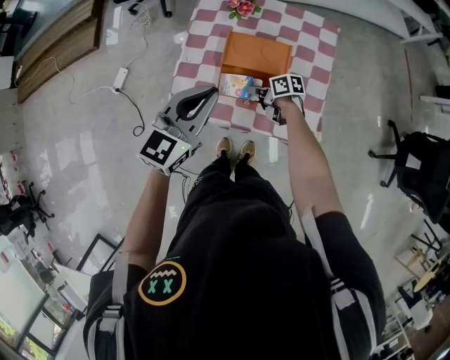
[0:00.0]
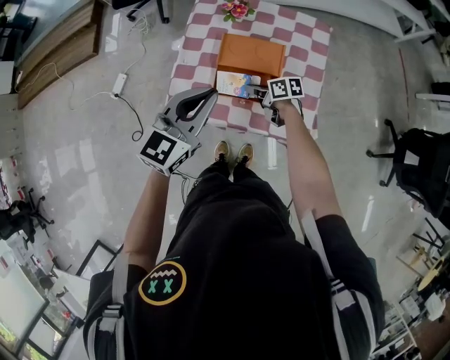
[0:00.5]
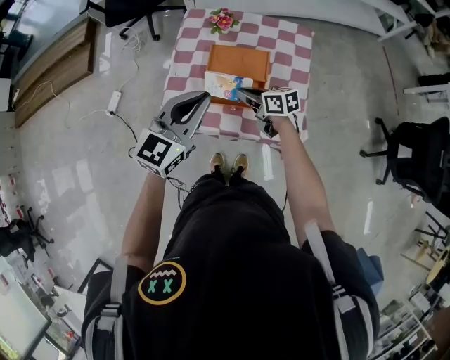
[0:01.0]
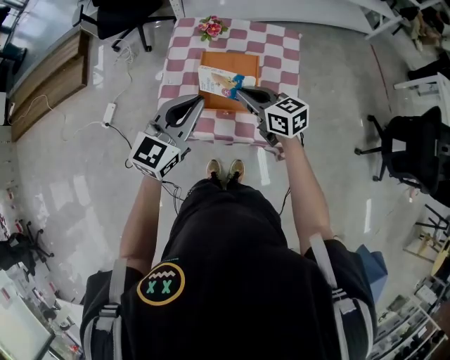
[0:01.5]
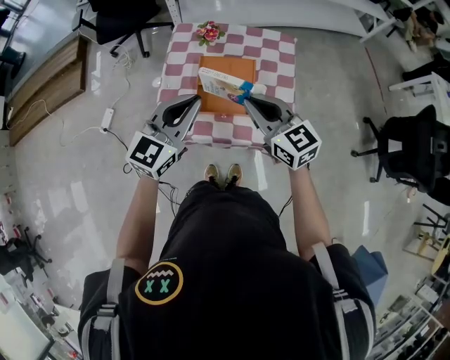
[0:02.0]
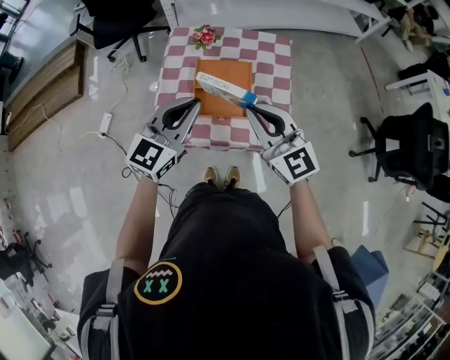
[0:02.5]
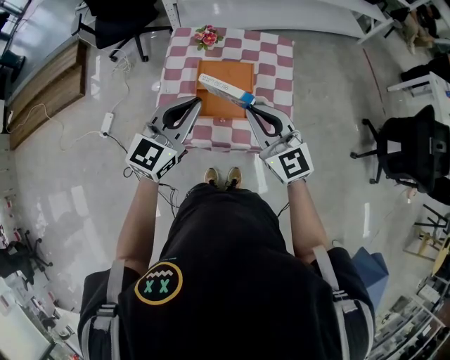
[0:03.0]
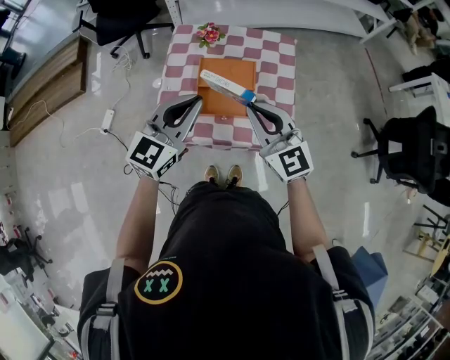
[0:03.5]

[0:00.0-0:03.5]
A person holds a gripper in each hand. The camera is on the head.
0:00.0 to 0:02.0: The right gripper heads upward, covering roughly 35 cm, and rotates around the line of its fingers by about 50 degrees, counterclockwise from behind; the left gripper goes roughly 5 cm upward.
0:02.0 to 0:03.5: There are only small adjustments of the grippers.

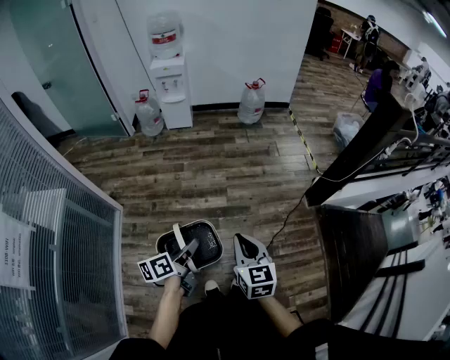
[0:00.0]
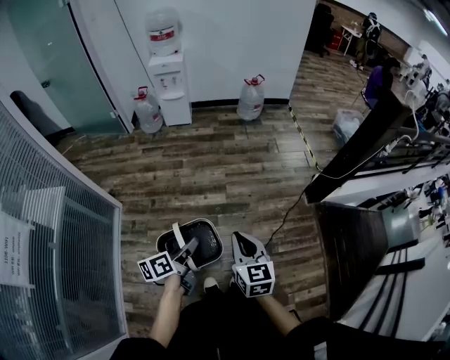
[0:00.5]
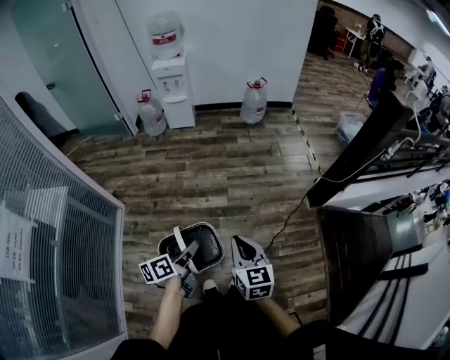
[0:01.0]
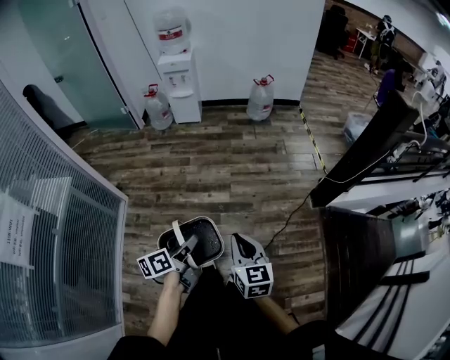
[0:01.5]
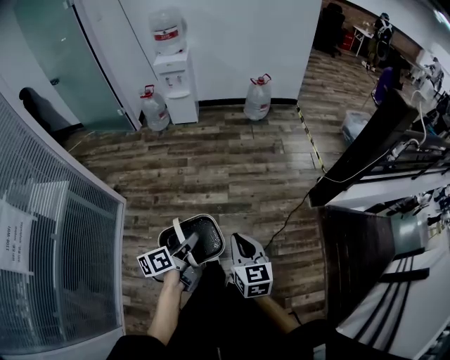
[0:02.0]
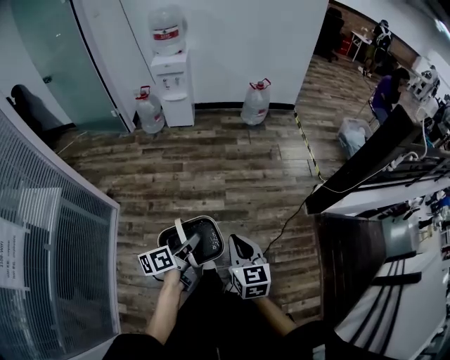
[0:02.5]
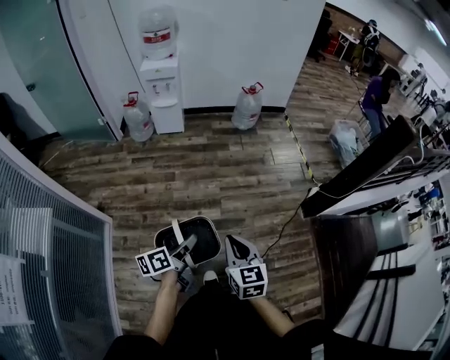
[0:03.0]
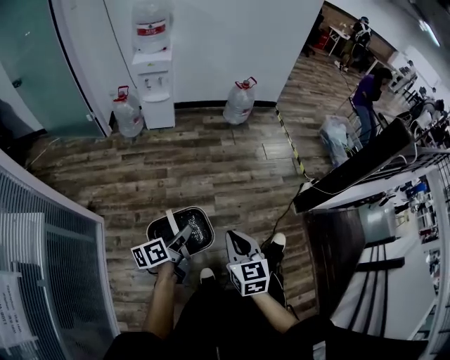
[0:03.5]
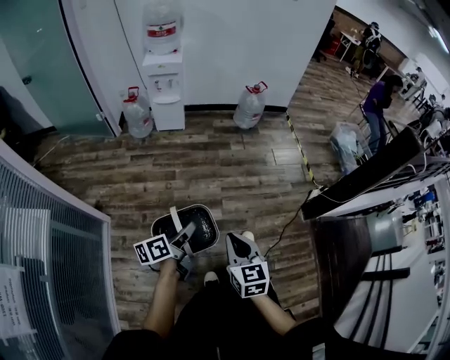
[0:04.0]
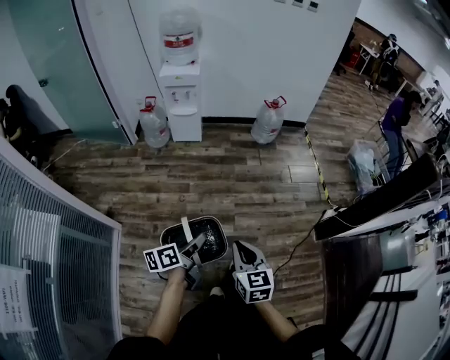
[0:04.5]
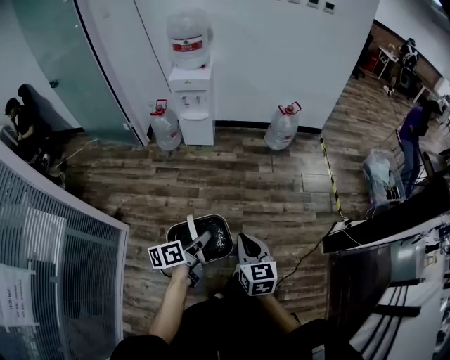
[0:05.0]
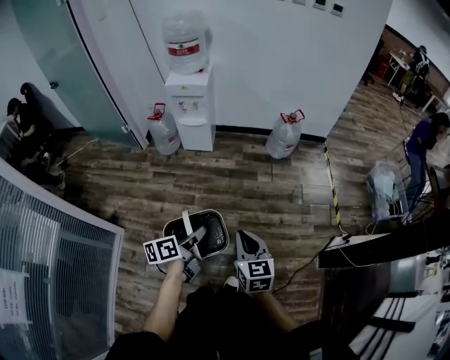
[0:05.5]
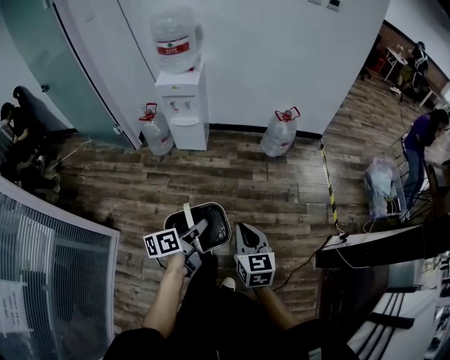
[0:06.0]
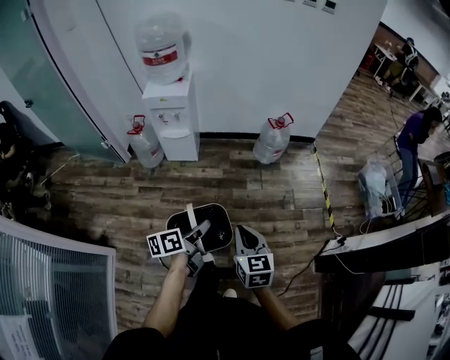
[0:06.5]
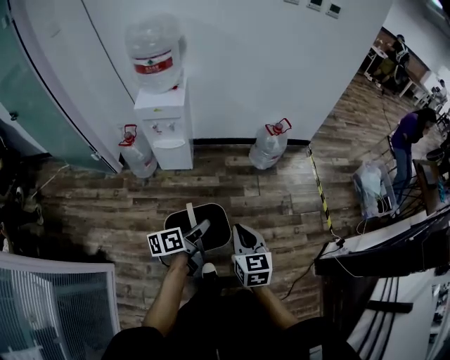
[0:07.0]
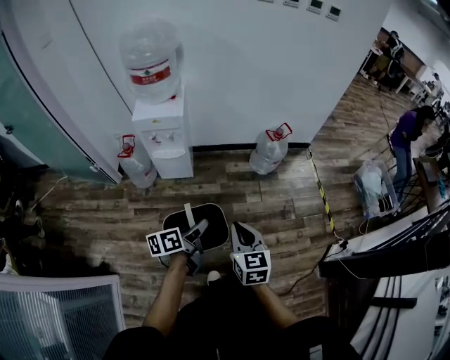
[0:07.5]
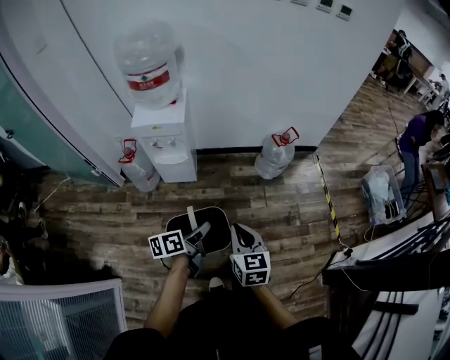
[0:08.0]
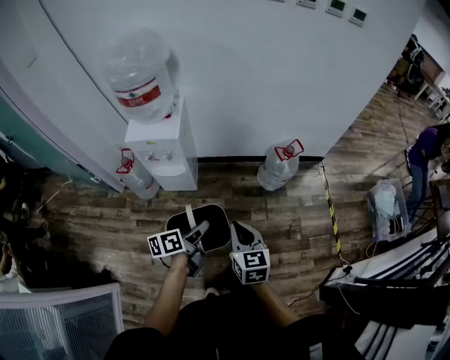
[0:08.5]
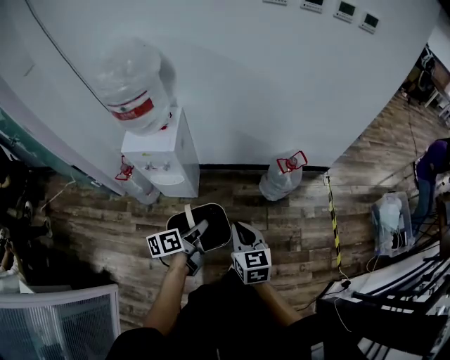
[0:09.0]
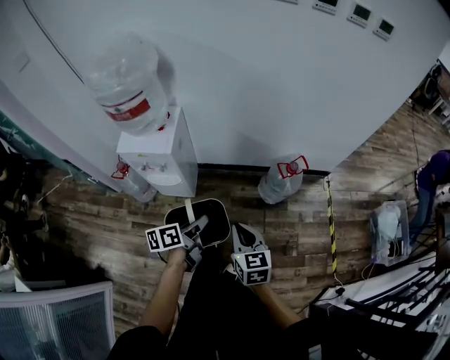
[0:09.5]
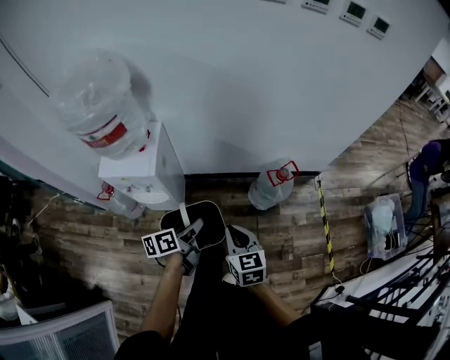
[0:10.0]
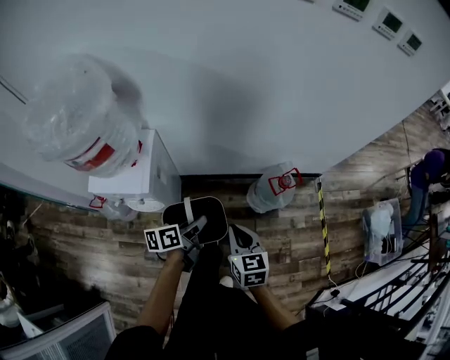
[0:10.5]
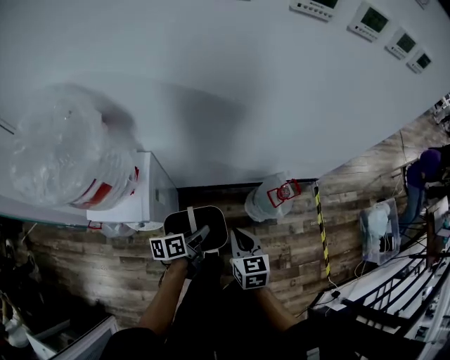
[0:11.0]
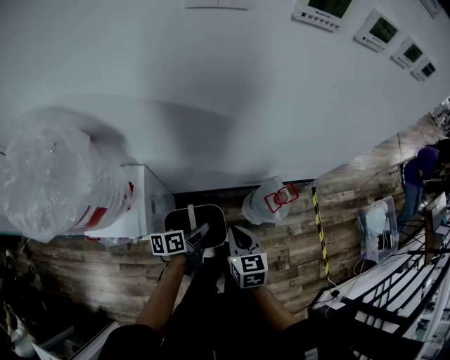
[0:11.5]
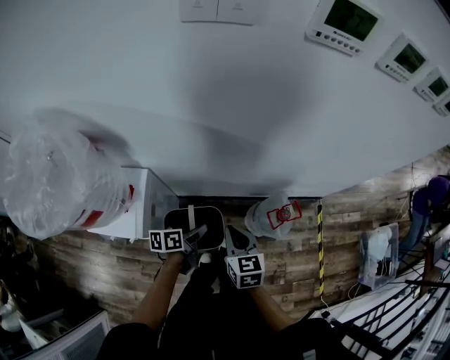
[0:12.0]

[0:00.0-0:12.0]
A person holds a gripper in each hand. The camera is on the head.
0:00.0 to 0:02.0: The grippers both shift to the right by approximately 5 cm.
0:02.0 to 0:04.0: The left gripper moves forward and to the left, some 25 cm; the right gripper heads to the left and forward, covering about 20 cm.
0:04.0 to 0:06.0: Both grippers move forward, about 30 cm.
0:06.0 to 0:08.0: The two grippers go roughly 30 cm forward and to the left.
0:08.0 to 0:10.0: The two grippers go roughly 30 cm forward.
0:10.0 to 0:12.0: Both grippers move forward, about 25 cm.

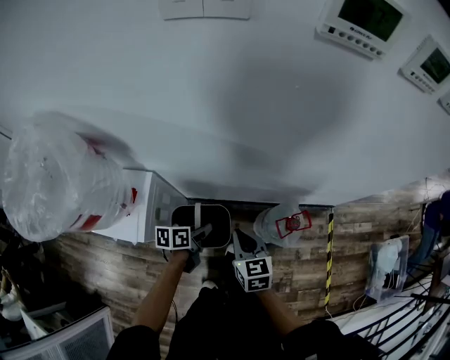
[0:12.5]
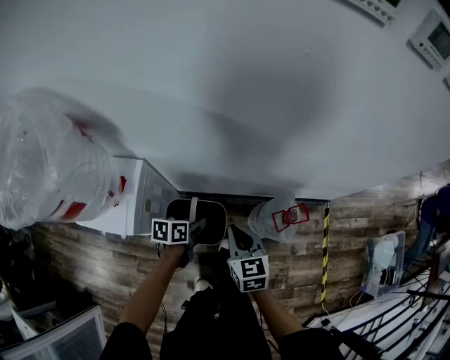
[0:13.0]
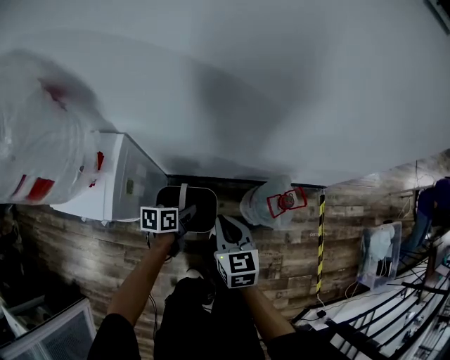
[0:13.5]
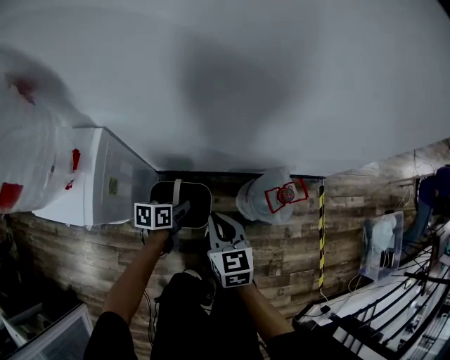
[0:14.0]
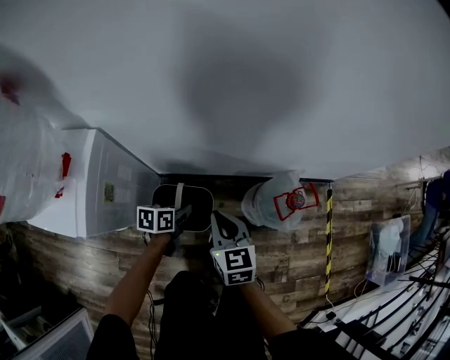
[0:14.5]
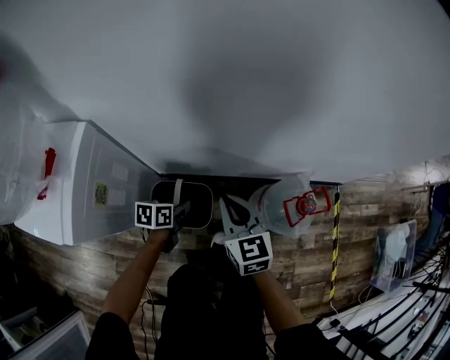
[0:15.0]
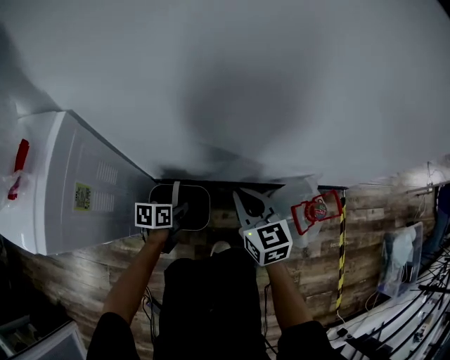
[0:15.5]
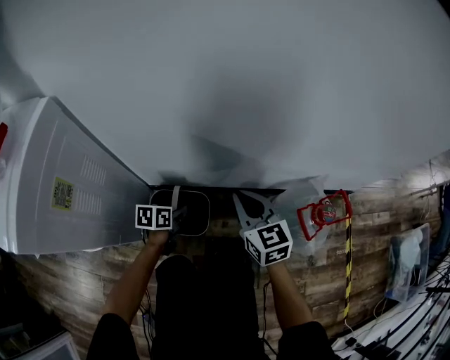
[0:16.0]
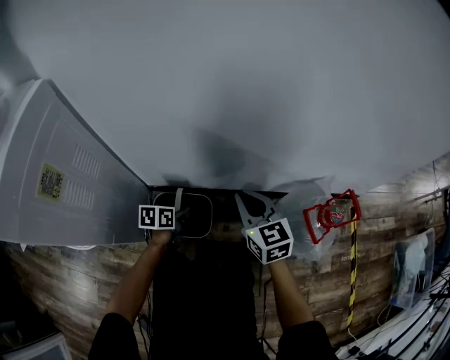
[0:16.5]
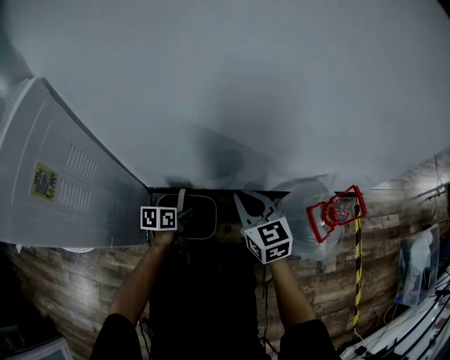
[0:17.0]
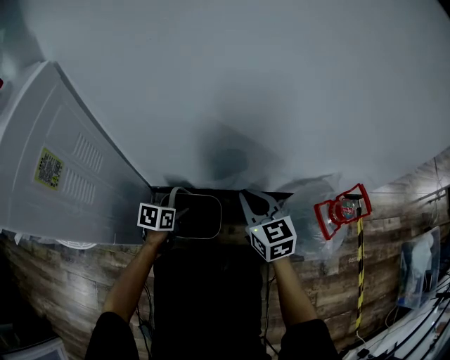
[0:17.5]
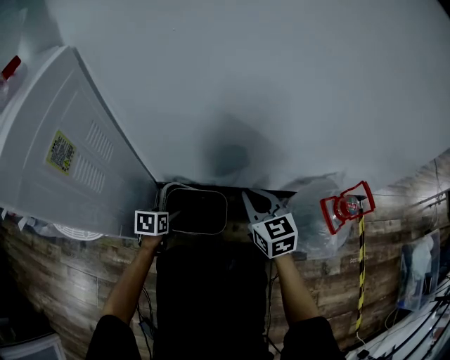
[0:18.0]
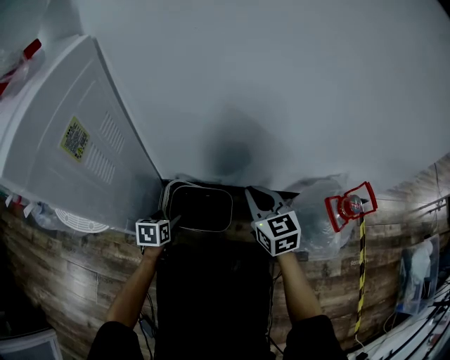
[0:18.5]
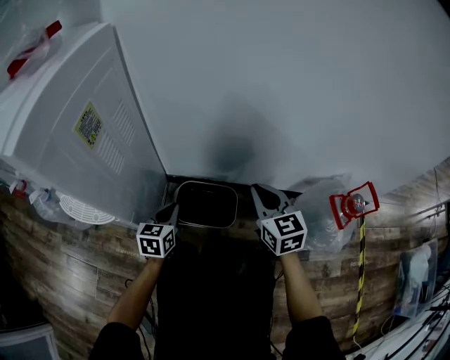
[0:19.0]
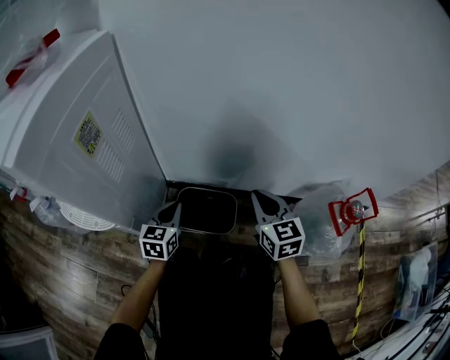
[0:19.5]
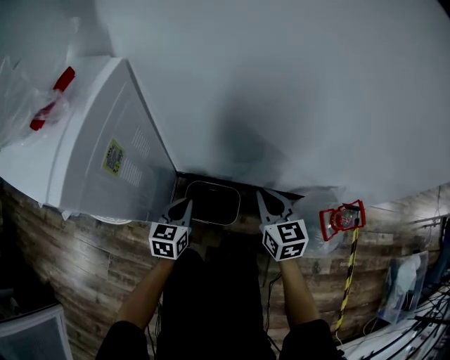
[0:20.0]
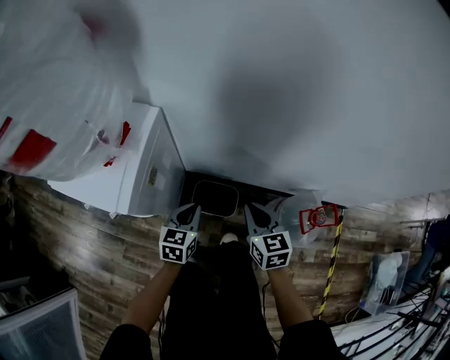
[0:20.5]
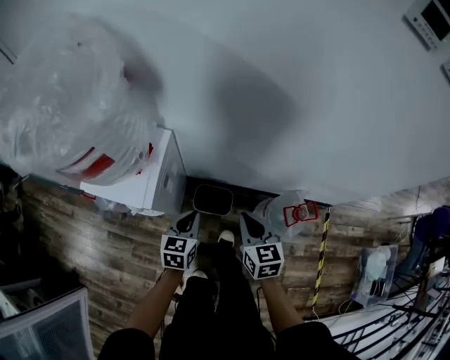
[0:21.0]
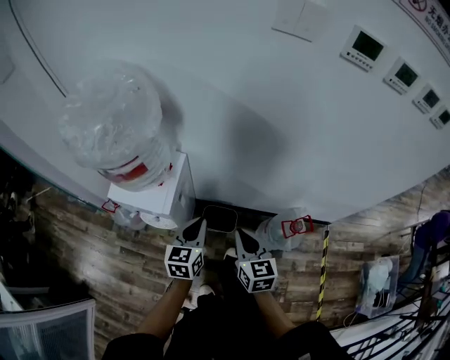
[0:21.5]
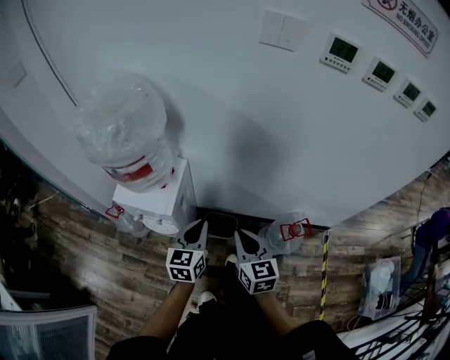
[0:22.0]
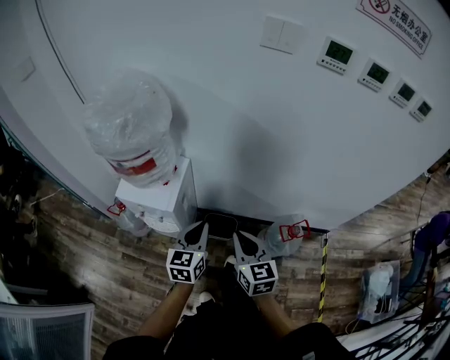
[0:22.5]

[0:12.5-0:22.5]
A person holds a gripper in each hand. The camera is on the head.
0:12.5 to 0:14.5: Both grippers travel together downward, some 20 cm.
0:14.5 to 0:16.5: The left gripper travels downward by roughly 25 cm. Meanwhile the right gripper travels downward and forward by some 25 cm.
0:16.5 to 0:18.5: The right gripper ends up some 5 cm from where it was. Meanwhile the left gripper shifts about 15 cm to the left and backward, rotates roughly 30 degrees, and opens.
0:18.5 to 0:20.5: The left gripper shifts some 35 cm upward, and closes. Meanwhile the right gripper heads upward, covering about 20 cm.
0:20.5 to 0:22.5: The right gripper heads upward and backward, covering some 35 cm. Meanwhile the left gripper is displaced upward by roughly 35 cm.

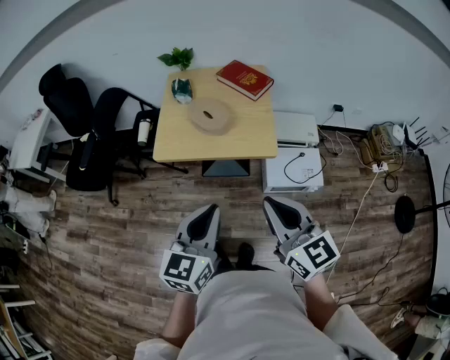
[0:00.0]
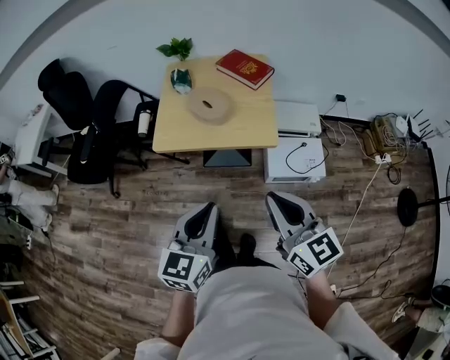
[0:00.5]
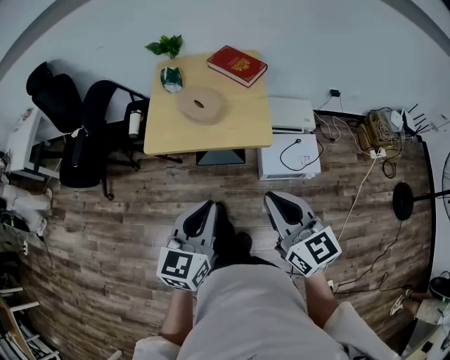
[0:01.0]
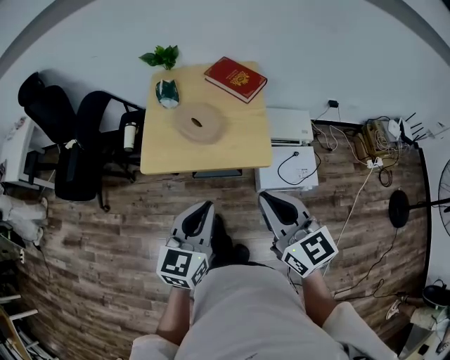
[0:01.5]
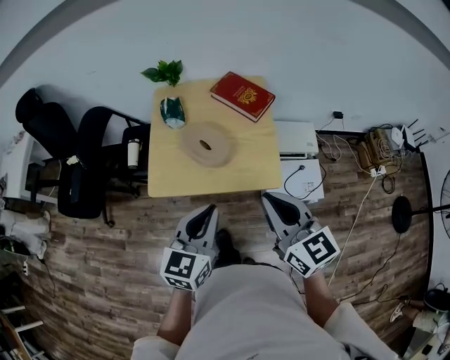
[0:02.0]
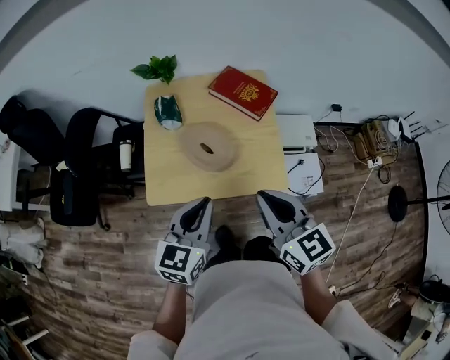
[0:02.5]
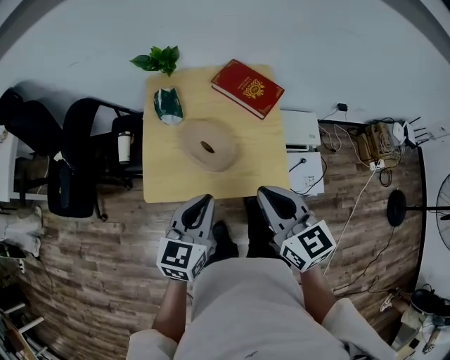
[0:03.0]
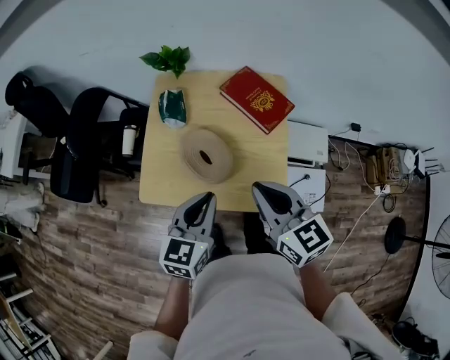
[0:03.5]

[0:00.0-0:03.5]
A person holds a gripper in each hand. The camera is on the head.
0:00.0 to 0:02.0: Both grippers move forward, about 20 cm.
0:02.0 to 0:03.5: Both grippers move forward, some 15 cm.
